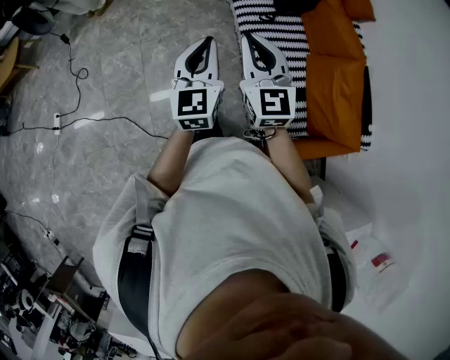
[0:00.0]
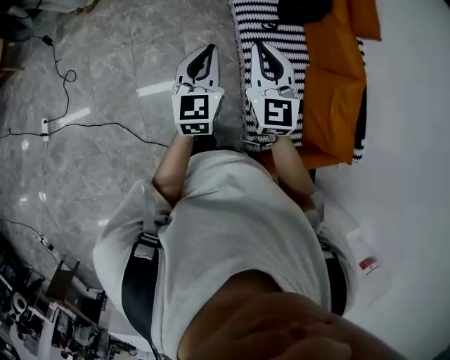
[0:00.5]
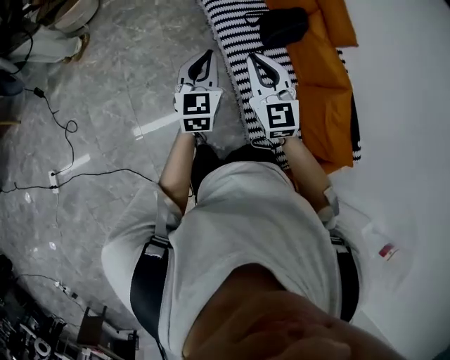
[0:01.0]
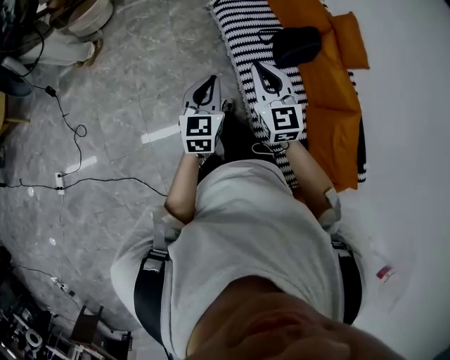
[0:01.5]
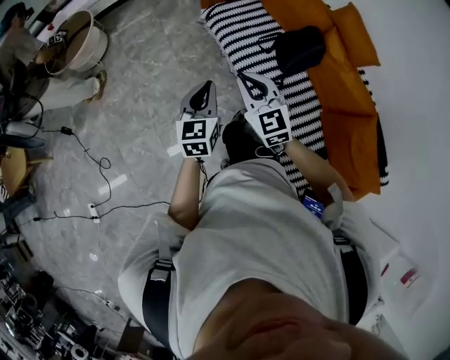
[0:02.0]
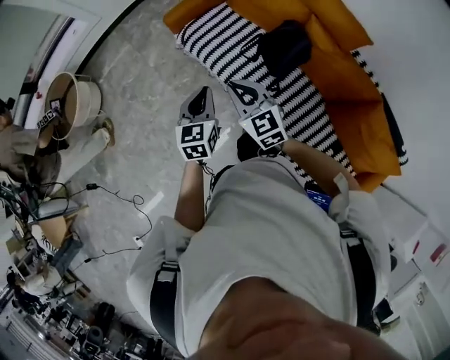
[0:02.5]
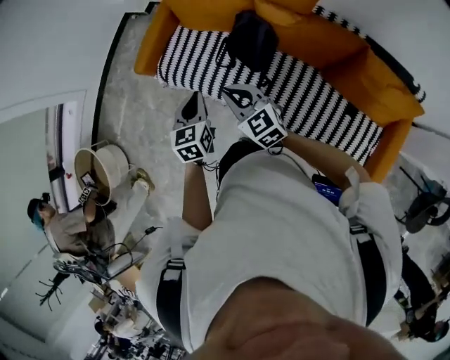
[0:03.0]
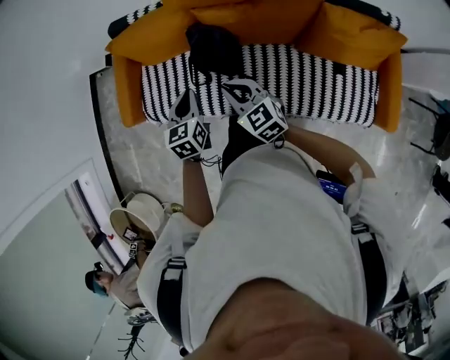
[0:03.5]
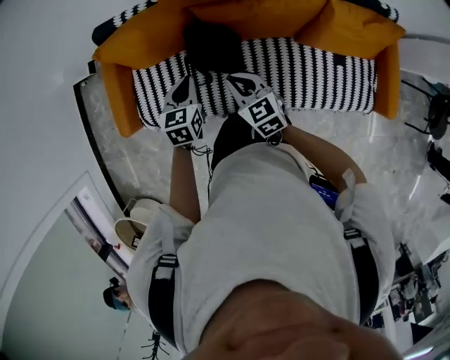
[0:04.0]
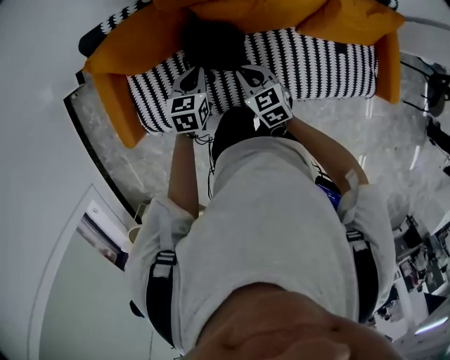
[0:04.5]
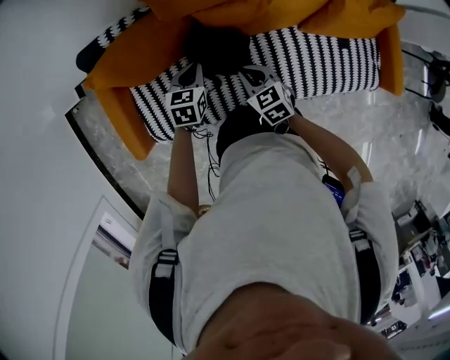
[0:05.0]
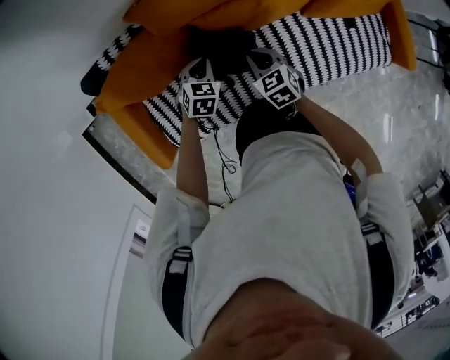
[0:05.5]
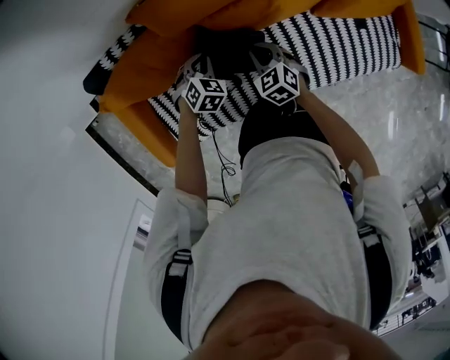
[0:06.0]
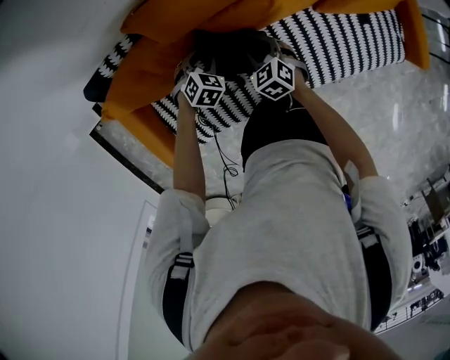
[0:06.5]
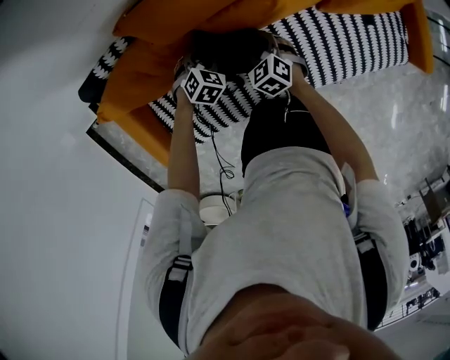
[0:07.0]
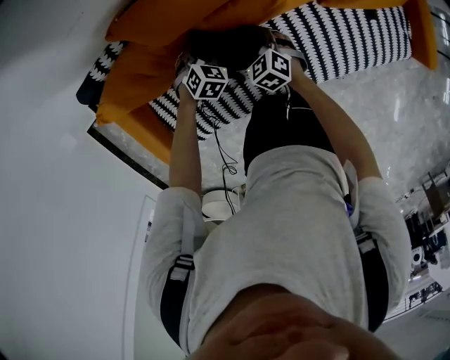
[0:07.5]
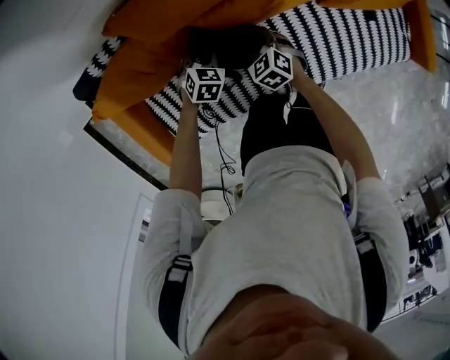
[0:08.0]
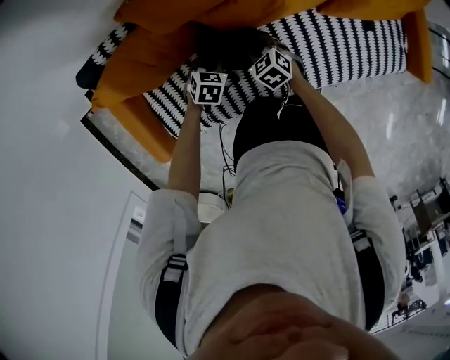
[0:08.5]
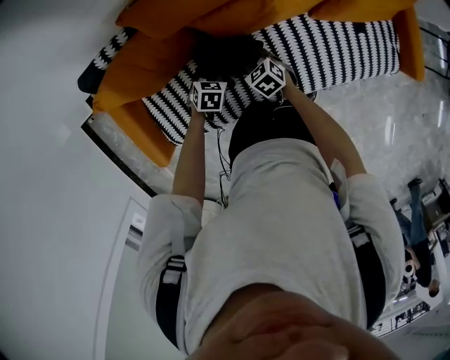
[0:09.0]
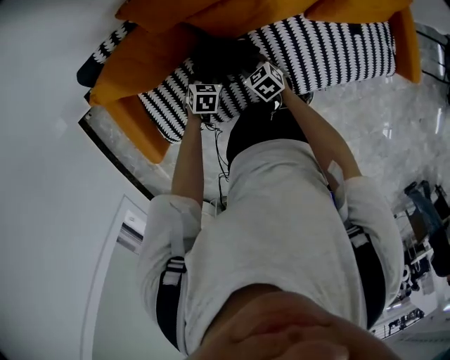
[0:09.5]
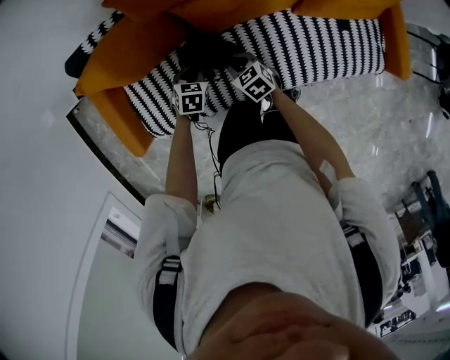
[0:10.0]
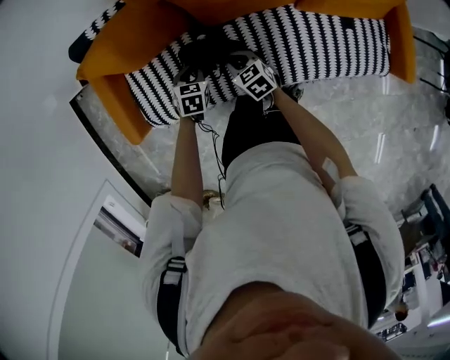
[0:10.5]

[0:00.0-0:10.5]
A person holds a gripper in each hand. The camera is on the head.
0.0 to 2.0 s: Both grippers travel together forward, roughly 40 cm. The left gripper changes its angle by some 20 degrees.
2.0 to 4.0 s: The pair of grippers is taken approximately 50 cm. The right gripper swivels some 70 degrees. Meanwhile the left gripper turns by approximately 70 degrees.
4.0 to 6.5 s: The grippers both shift downward by some 25 cm. The left gripper rolls clockwise, seen from behind, by approximately 50 degrees, and opens; the right gripper rotates roughly 30 degrees, and opens up.
6.5 to 8.5 s: The right gripper heads downward, covering about 5 cm. The left gripper moves roughly 5 cm, and swivels approximately 20 degrees.
8.5 to 10.5 s: The grippers both shift backward and upward by roughly 15 cm. The left gripper rotates roughly 20 degrees.

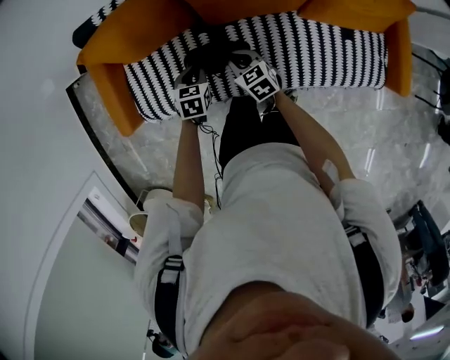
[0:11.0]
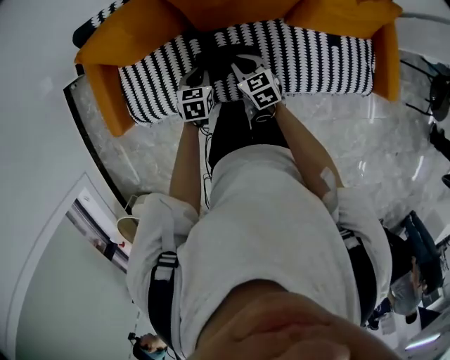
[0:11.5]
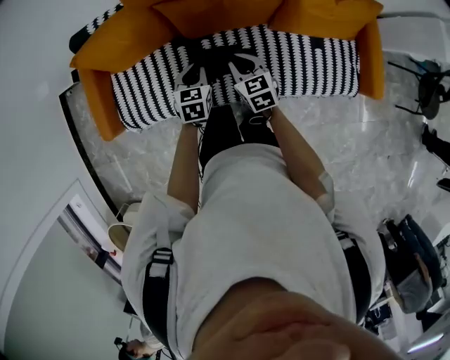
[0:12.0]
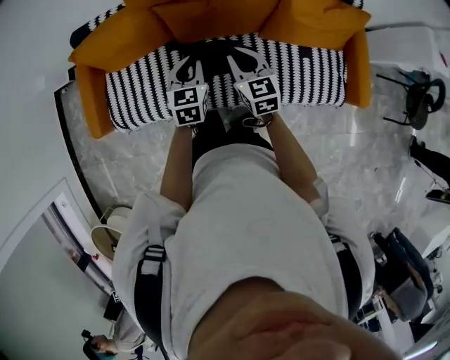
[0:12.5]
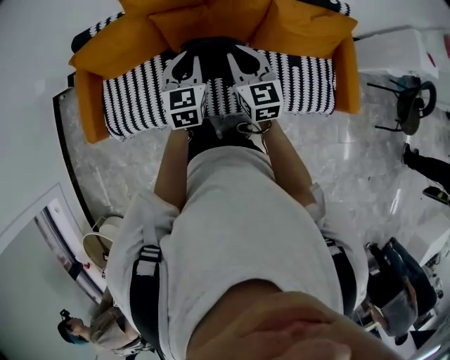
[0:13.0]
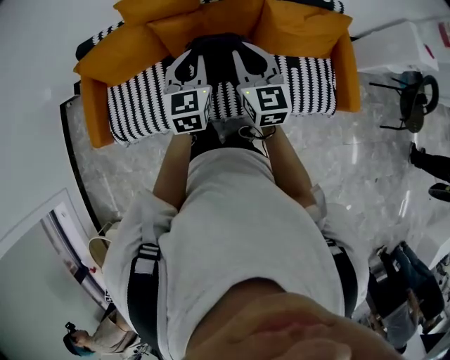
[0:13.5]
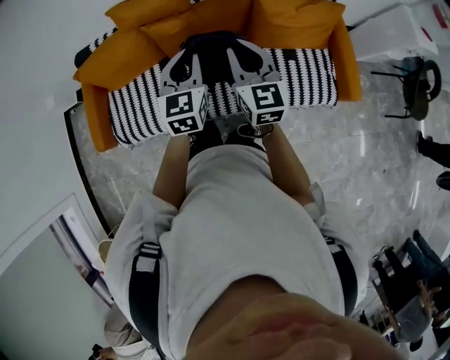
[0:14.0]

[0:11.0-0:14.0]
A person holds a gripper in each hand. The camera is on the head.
11.0 to 12.5 s: The two grippers go roughly 25 cm upward and to the right. The left gripper rotates some 30 degrees. The right gripper turns by approximately 30 degrees.
12.5 to 14.0 s: The grippers both shift upward and to the right by some 20 cm.

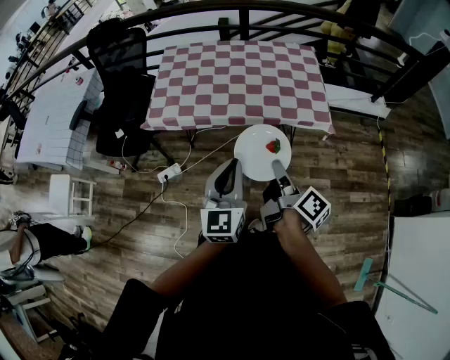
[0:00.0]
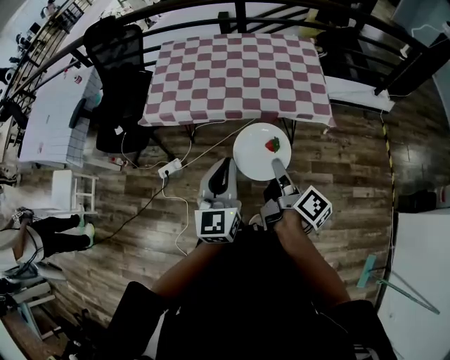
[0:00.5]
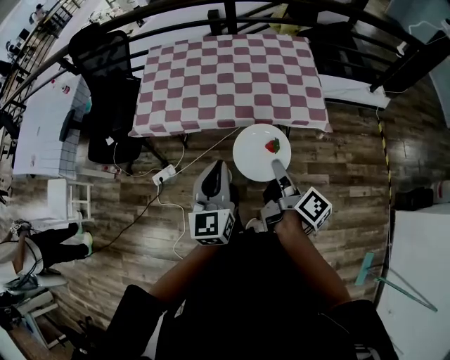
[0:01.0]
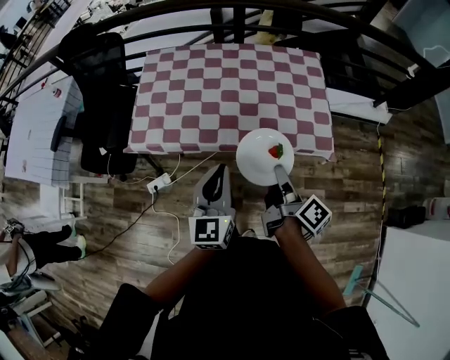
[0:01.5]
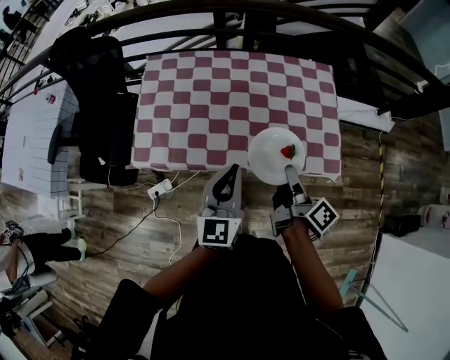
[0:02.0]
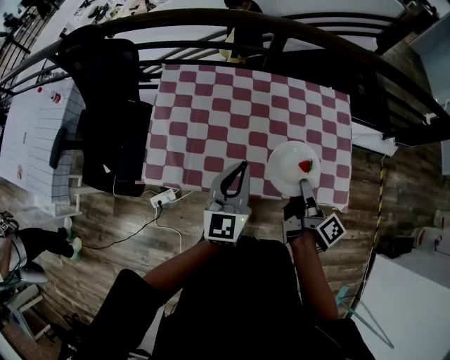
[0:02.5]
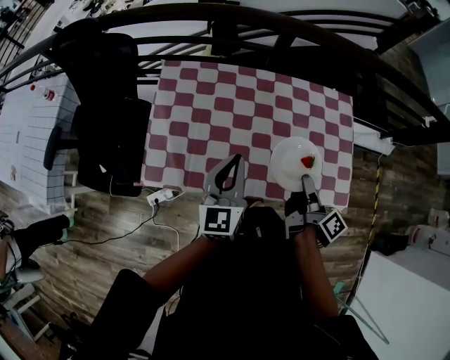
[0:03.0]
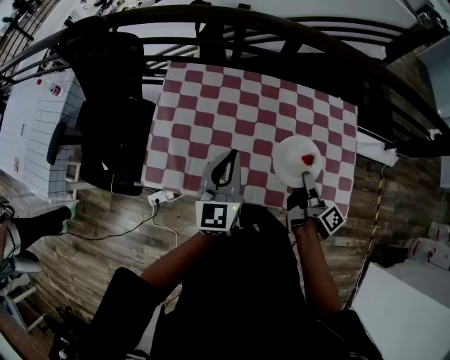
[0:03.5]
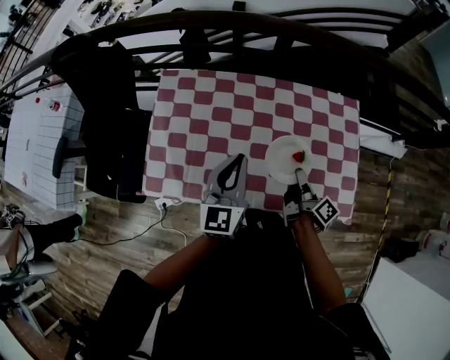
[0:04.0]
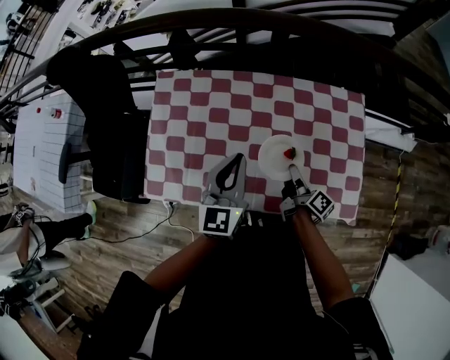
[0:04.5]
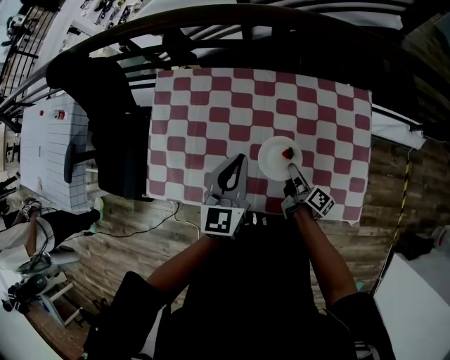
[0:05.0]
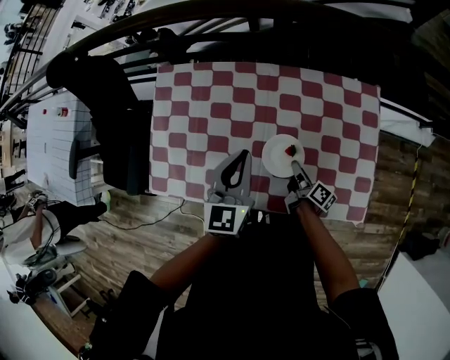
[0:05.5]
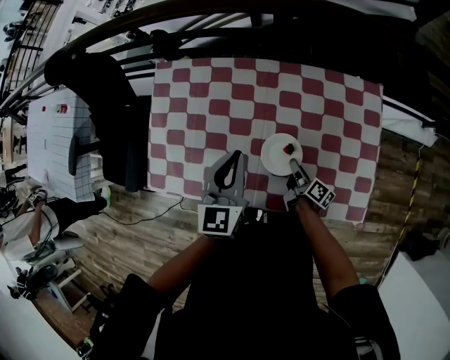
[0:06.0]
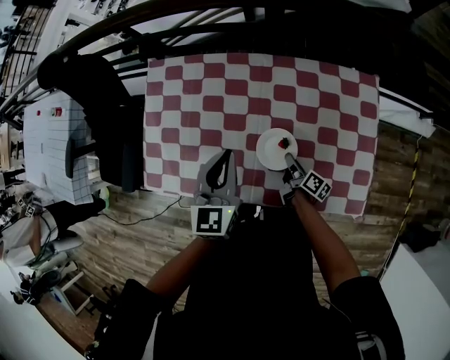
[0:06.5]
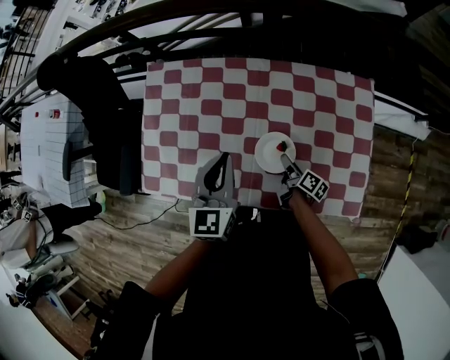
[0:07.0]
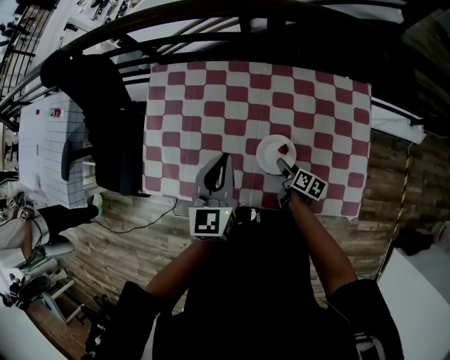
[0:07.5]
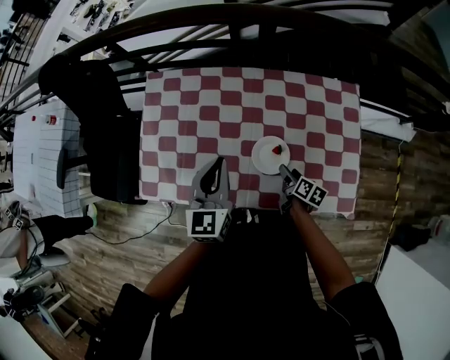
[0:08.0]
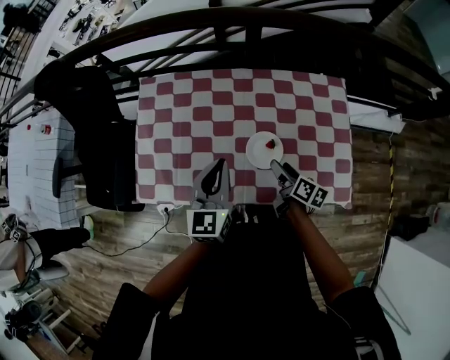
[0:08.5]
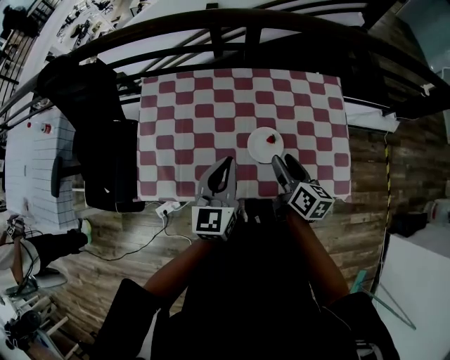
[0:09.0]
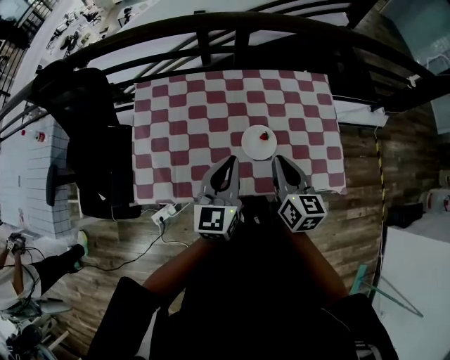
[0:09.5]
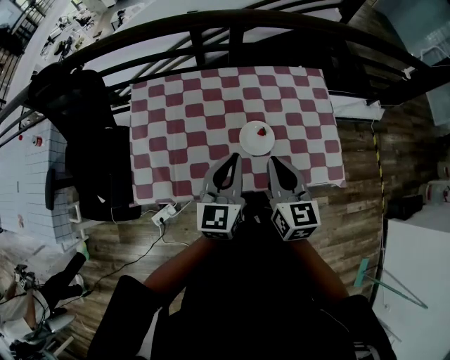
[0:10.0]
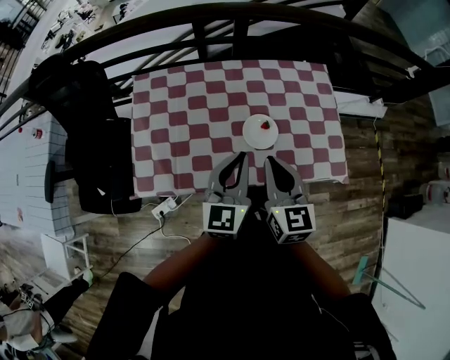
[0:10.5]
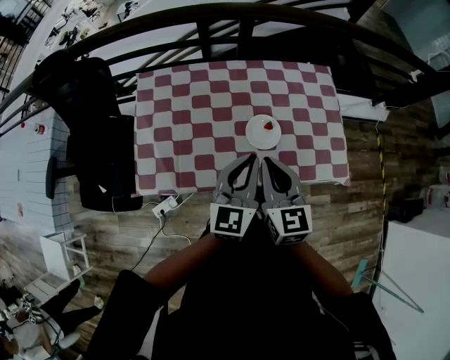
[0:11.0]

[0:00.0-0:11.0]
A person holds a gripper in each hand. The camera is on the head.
0.0 to 2.0 s: Both grippers travel together forward, approximately 30 cm.
2.0 to 3.5 s: The right gripper heads forward, covering roughly 15 cm. The left gripper heads forward and to the left, covering roughly 20 cm.
3.5 to 5.5 s: The left gripper shifts some 15 cm to the right and forward; the right gripper goes some 20 cm downward.
5.5 to 7.5 s: The right gripper changes its angle by roughly 30 degrees, and opens its fingers.
7.5 to 9.0 s: The right gripper is displaced upward by roughly 25 cm, and swivels roughly 30 degrees, while the left gripper moves backward, some 10 cm.
9.0 to 11.0 s: The right gripper travels upward, backward and to the left by about 15 cm, turns by roughly 40 degrees, and closes; the left gripper shifts about 5 cm backward.

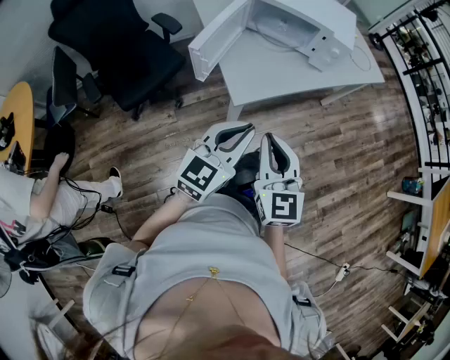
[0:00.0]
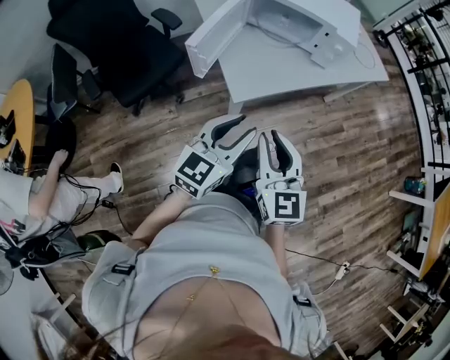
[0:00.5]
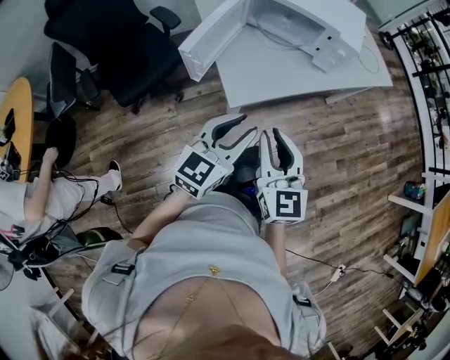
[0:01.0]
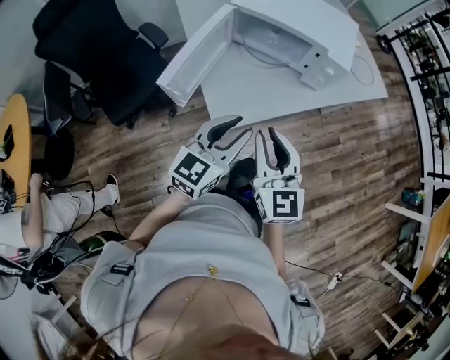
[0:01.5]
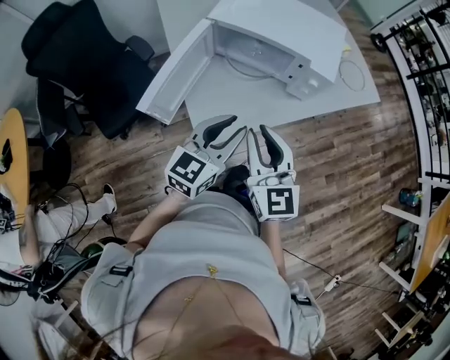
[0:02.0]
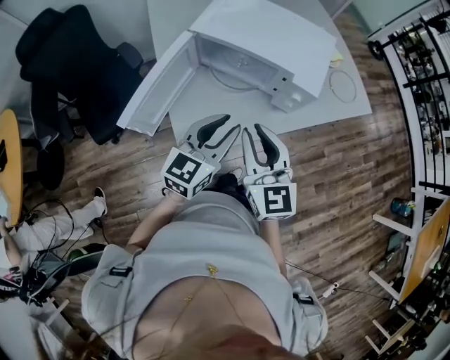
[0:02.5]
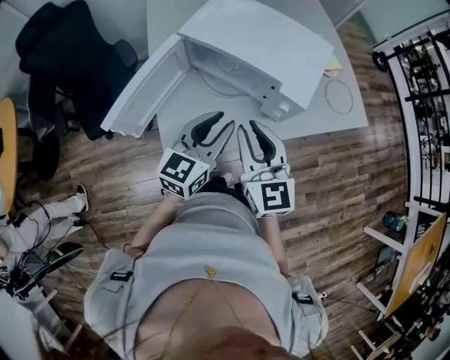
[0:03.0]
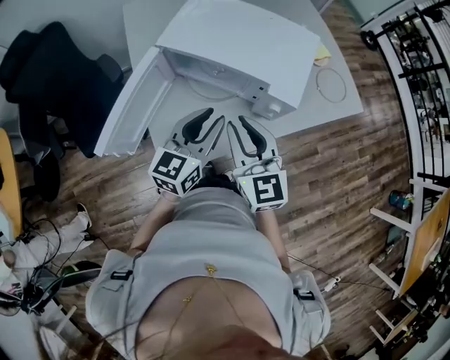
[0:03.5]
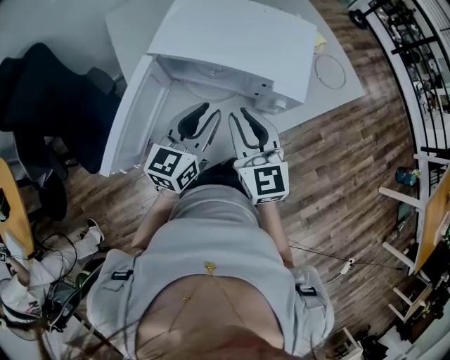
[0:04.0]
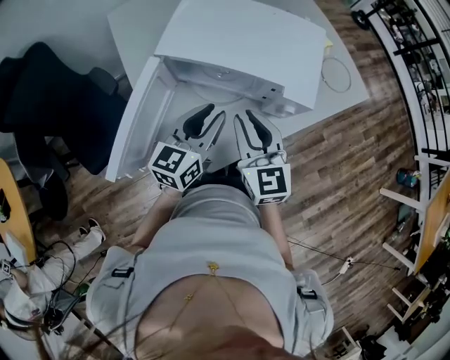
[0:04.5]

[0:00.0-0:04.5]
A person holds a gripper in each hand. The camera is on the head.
0.0 to 2.0 s: The two grippers go about 20 cm forward.
2.0 to 4.5 s: Both grippers travel together forward, some 15 cm.
